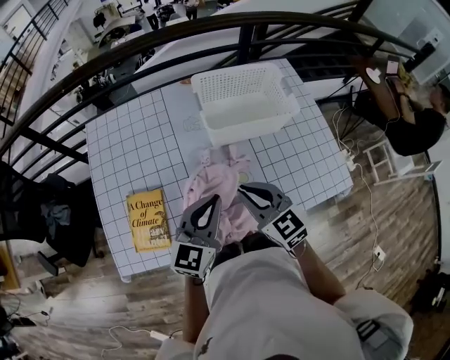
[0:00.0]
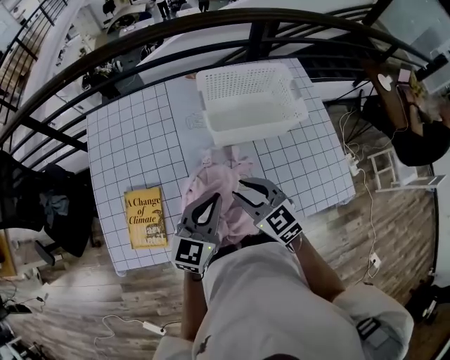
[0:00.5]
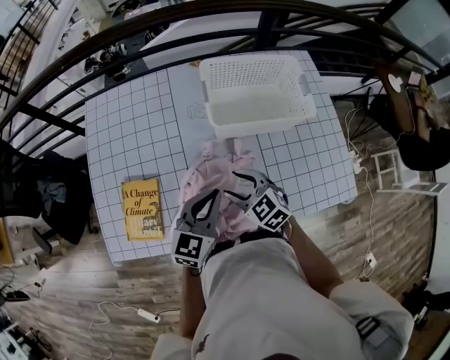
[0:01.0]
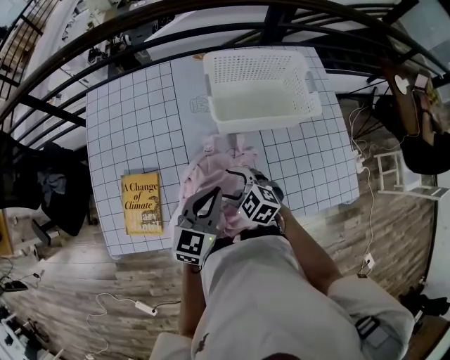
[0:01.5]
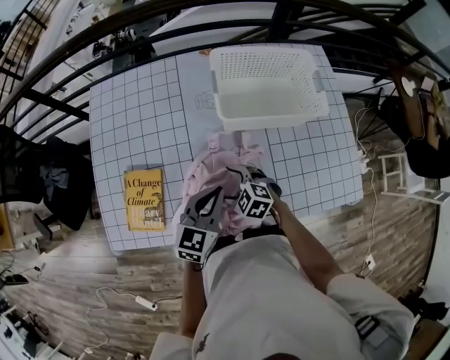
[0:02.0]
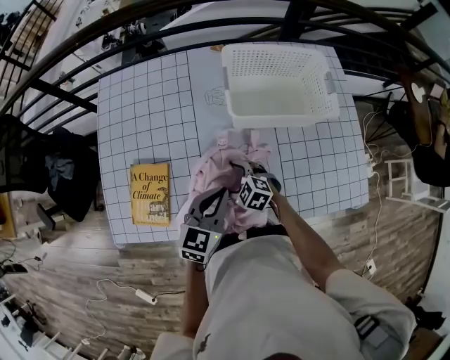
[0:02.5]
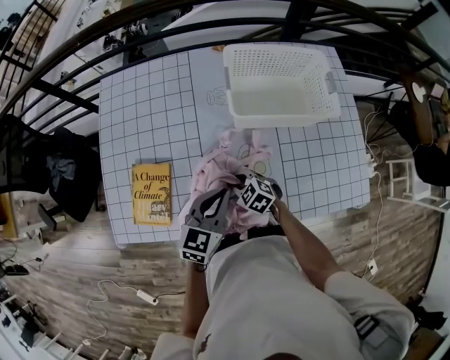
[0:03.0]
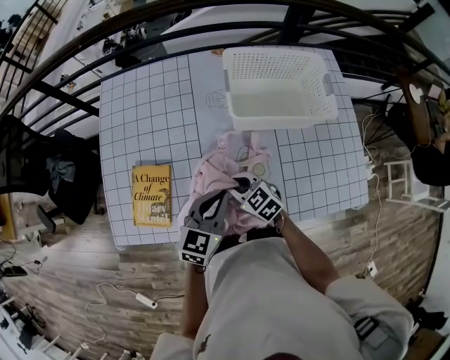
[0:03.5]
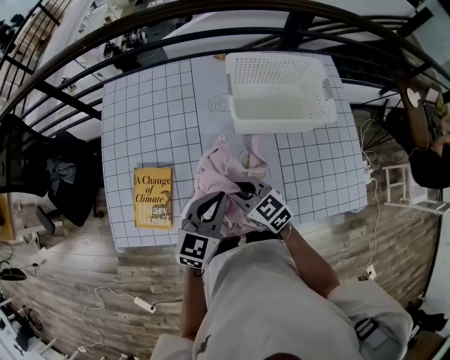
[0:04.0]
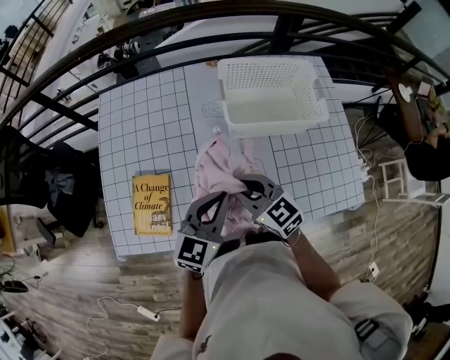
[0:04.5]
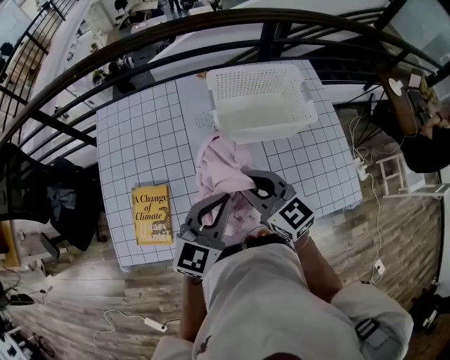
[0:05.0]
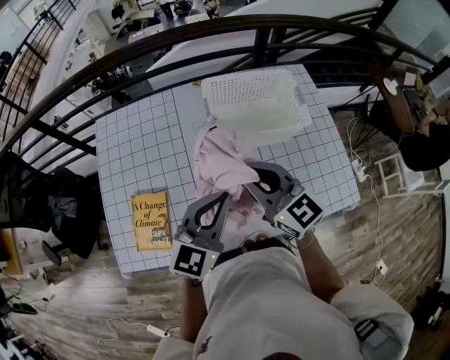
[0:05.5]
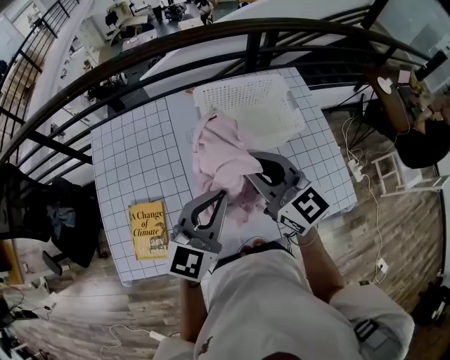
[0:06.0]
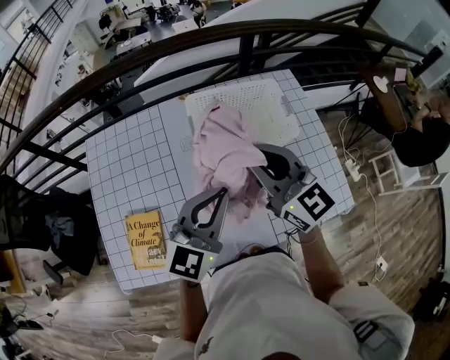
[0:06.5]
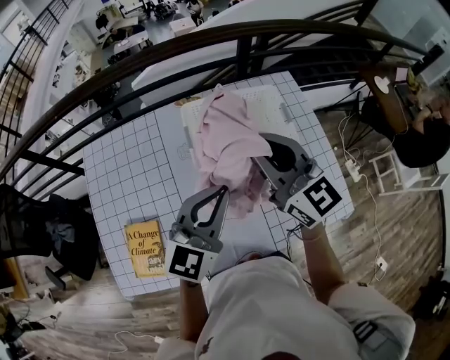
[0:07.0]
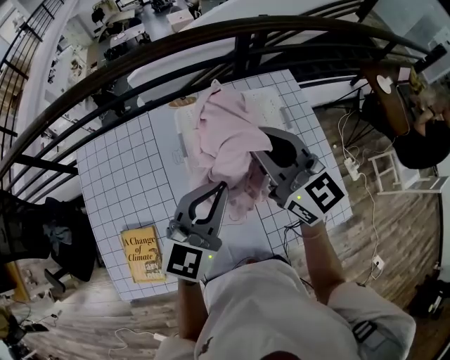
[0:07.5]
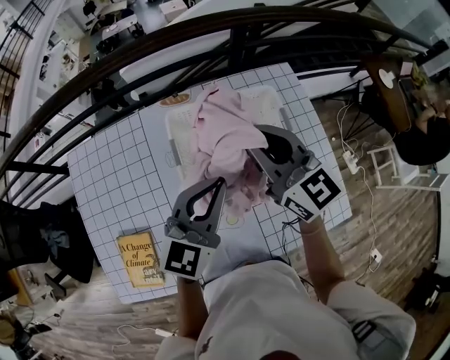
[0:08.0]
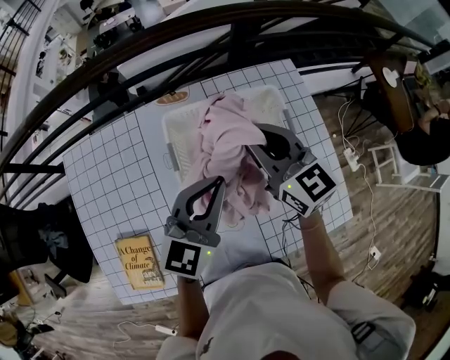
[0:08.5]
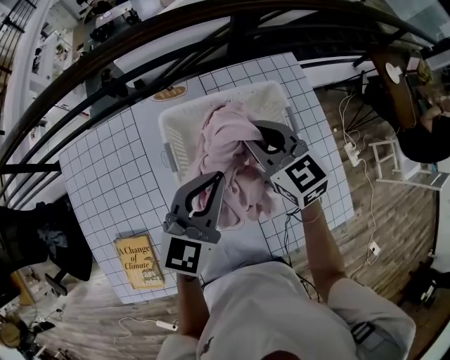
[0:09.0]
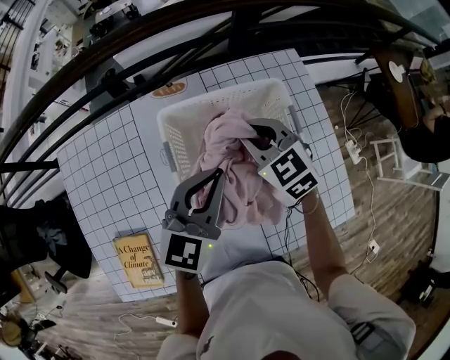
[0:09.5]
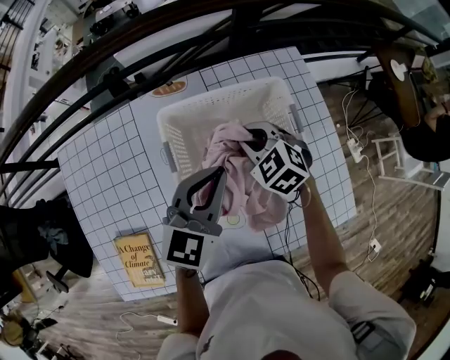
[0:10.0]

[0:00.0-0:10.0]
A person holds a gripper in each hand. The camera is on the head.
0:00.0 to 0:02.0: The right gripper heads downward, covering about 20 cm, points its fingers approximately 30 degrees further downward, and opens, while the left gripper shifts about 10 cm downward.
0:02.0 to 0:04.0: The right gripper travels upward by roughly 10 cm, turns by roughly 30 degrees, and closes up.
0:04.0 to 0:06.0: The right gripper shifts some 25 cm upward and to the right, and changes its angle by about 30 degrees. The left gripper heads upward and to the right, covering about 15 cm, and changes its angle by about 20 degrees.
0:06.0 to 0:08.0: The right gripper heads forward and to the right, covering approximately 20 cm; the left gripper moves forward, roughly 15 cm.
0:08.0 to 0:10.0: The right gripper is displaced downward by roughly 20 cm, and tilts its fingers about 40 degrees downward. Meanwhile the left gripper shifts about 10 cm downward and forward.

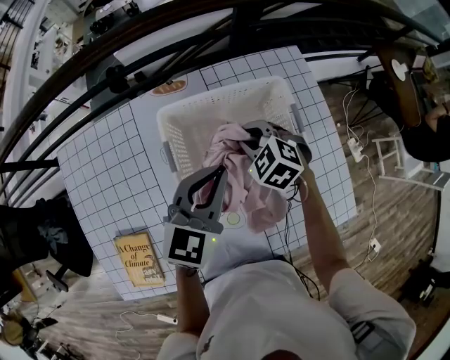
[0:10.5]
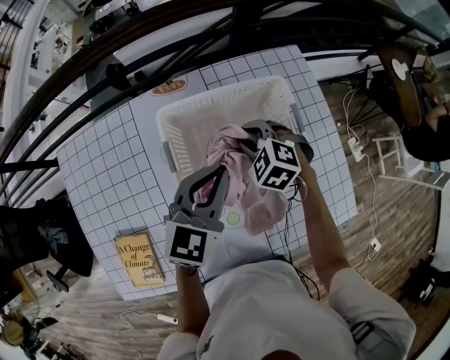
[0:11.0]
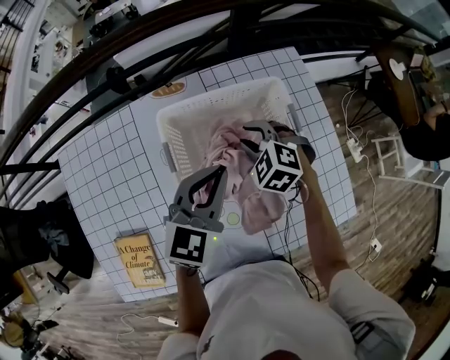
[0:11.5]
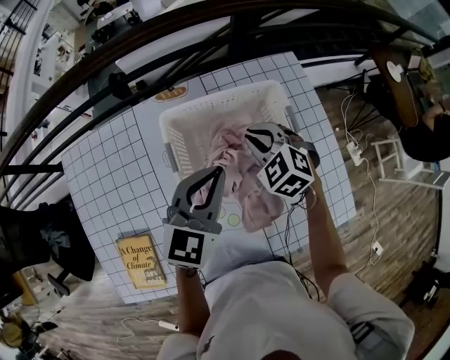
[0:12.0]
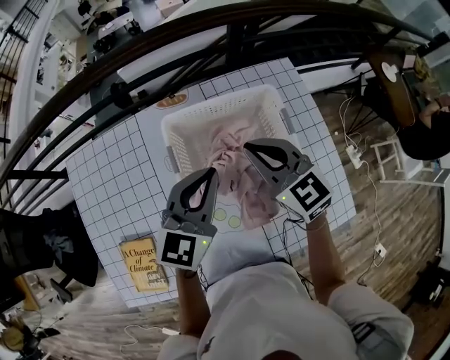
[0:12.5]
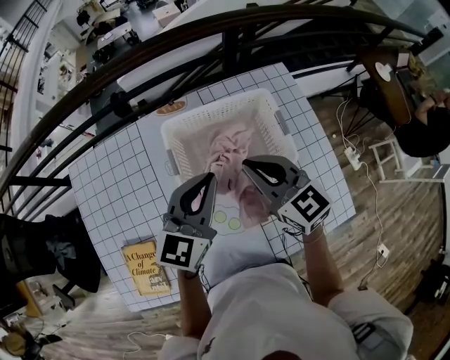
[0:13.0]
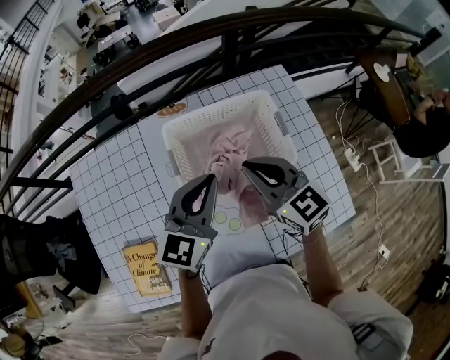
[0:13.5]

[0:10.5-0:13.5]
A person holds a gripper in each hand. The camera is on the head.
0:10.5 to 0:12.0: The grippers move only a little.
0:12.0 to 0:13.5: The right gripper moves upward and backward, roughly 15 cm, and angles its fingers upward, by approximately 30 degrees.

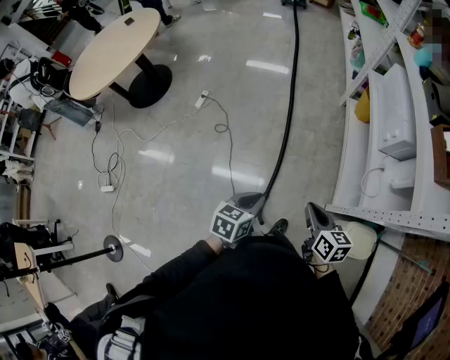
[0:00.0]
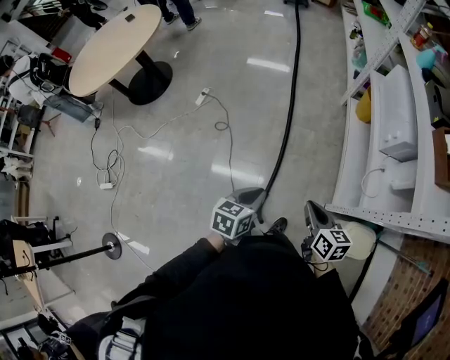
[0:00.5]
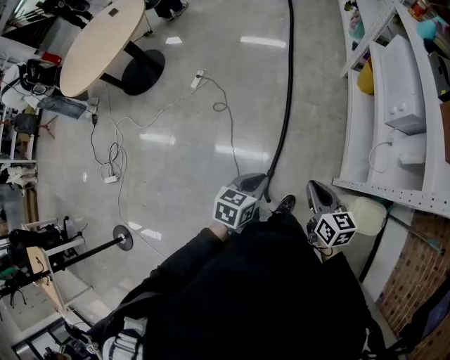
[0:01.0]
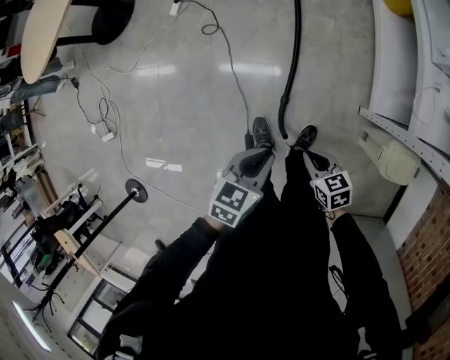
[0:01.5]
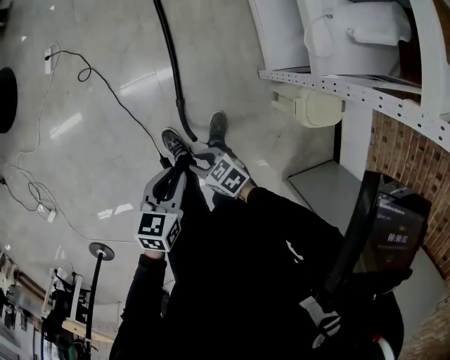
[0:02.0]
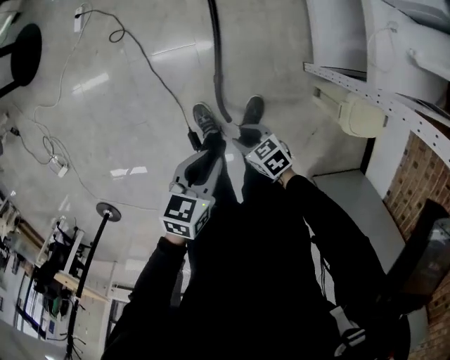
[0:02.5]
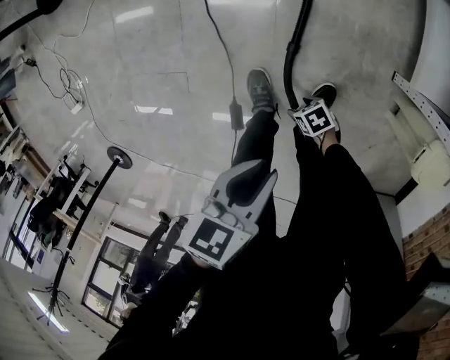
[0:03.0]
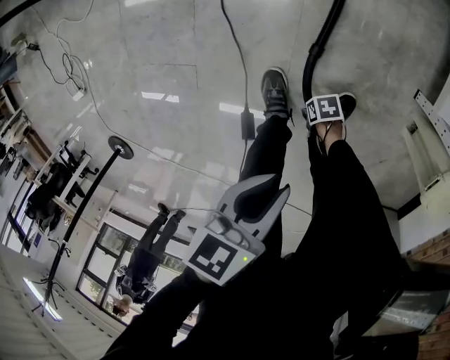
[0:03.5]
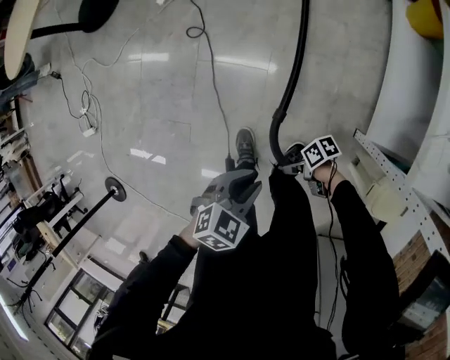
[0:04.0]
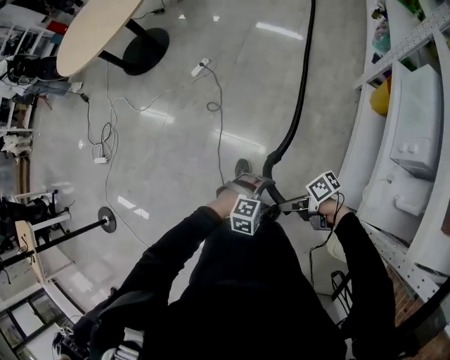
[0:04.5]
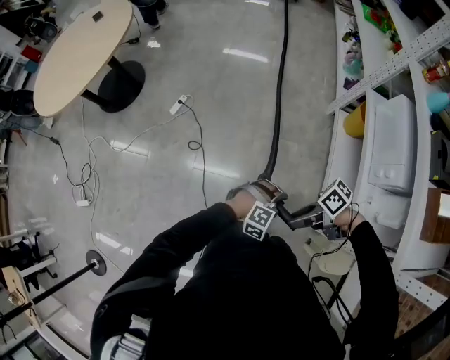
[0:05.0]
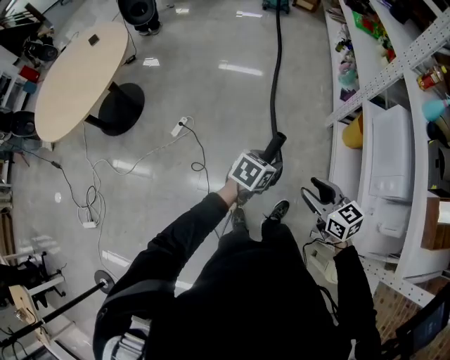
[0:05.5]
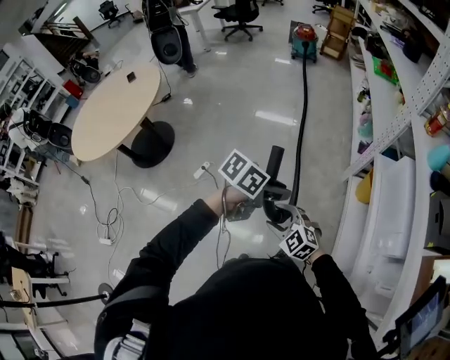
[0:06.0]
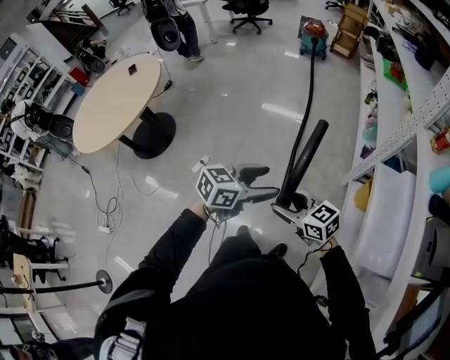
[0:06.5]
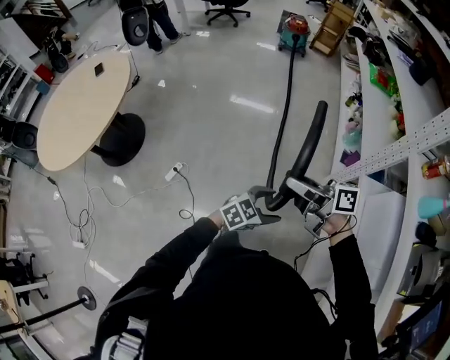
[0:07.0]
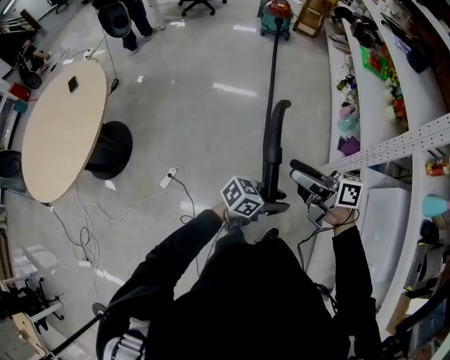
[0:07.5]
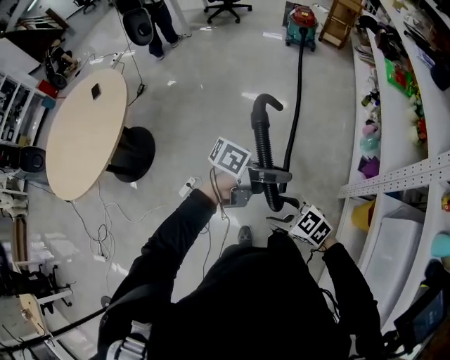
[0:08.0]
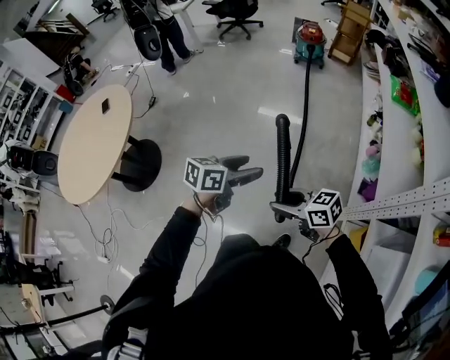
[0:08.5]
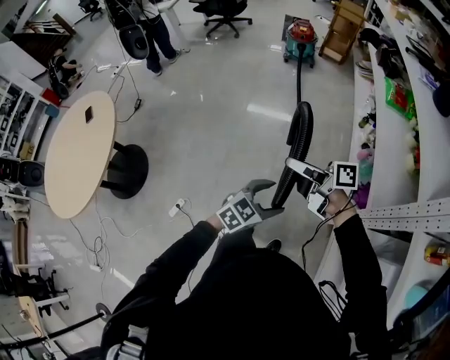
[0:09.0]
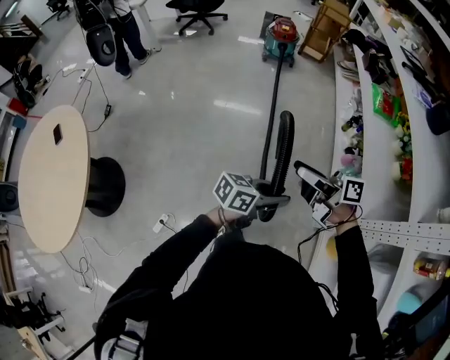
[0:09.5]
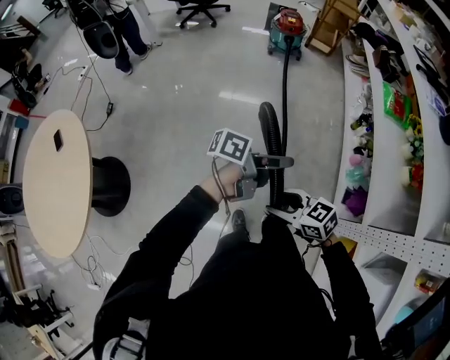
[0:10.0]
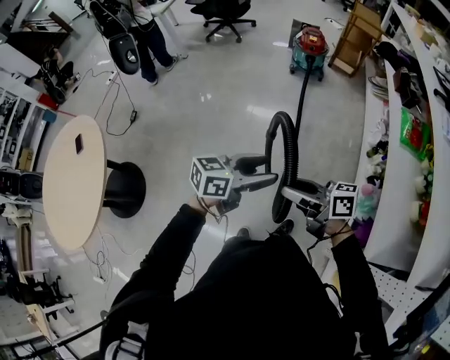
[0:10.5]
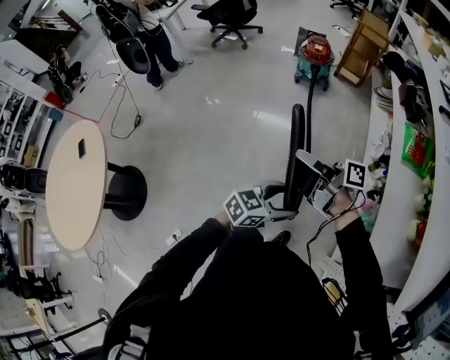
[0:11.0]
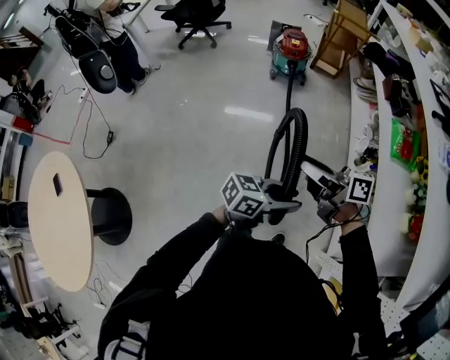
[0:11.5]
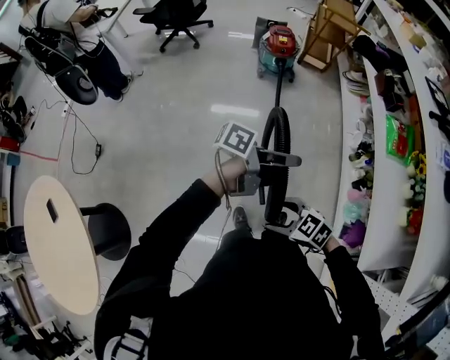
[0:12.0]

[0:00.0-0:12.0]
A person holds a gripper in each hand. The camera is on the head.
0:00.0 to 0:02.0: The right gripper heads downward, covering some 30 cm, and swivels some 40 degrees. Meanwhile the left gripper is displaced downward by roughly 20 cm.
0:02.0 to 0:04.0: The right gripper travels downward and back again, approximately 40 cm each way, and rotates roughly 50 degrees; the left gripper moves downward, roughly 5 cm, and swivels approximately 20 degrees.
0:04.0 to 0:06.0: The two grippers travel together, some 50 cm. The left gripper swivels roughly 30 degrees, and opens, then closes again, while the right gripper rotates around the line of its fingers by some 90 degrees, counterclockwise from behind.
0:06.0 to 0:08.0: The right gripper moves some 15 cm upward and comes back, and changes its angle by approximately 30 degrees. The left gripper travels downward and back again, some 10 cm each way, swivels approximately 30 degrees, and opens, then closes again.
0:08.0 to 0:10.0: The left gripper travels downward and back again, about 10 cm each way, and opens, then closes once more; the right gripper moves roughly 15 cm upward and comes back.
0:10.0 to 0:12.0: The left gripper moves about 35 cm, and opens and closes again; the right gripper travels upward and back again, approximately 10 cm each way.

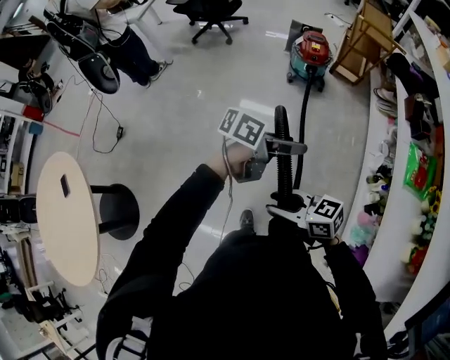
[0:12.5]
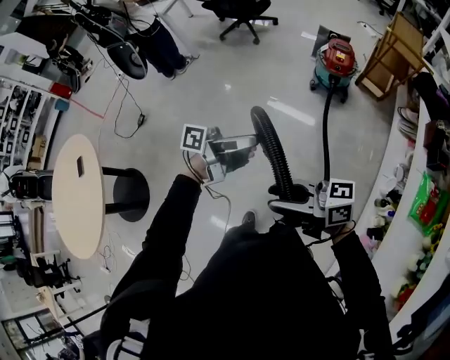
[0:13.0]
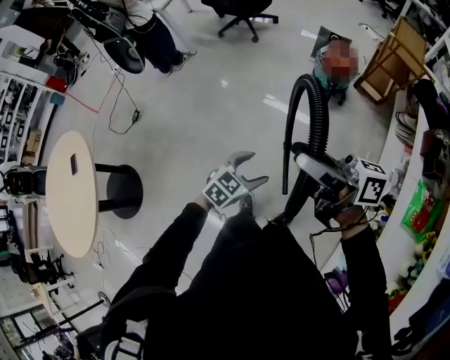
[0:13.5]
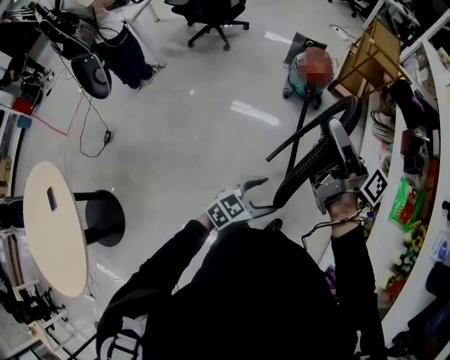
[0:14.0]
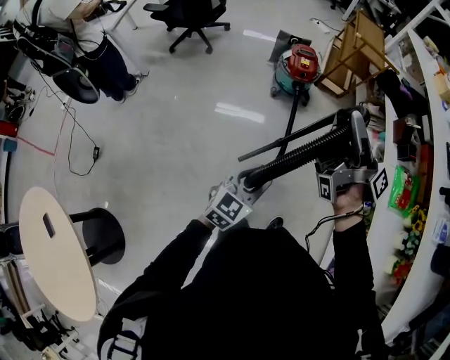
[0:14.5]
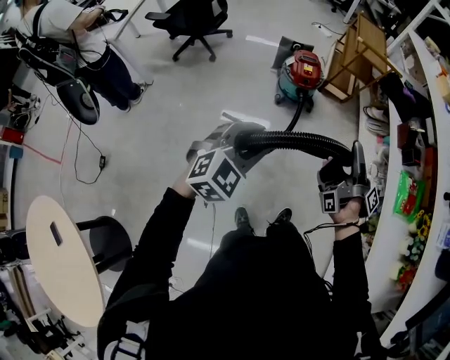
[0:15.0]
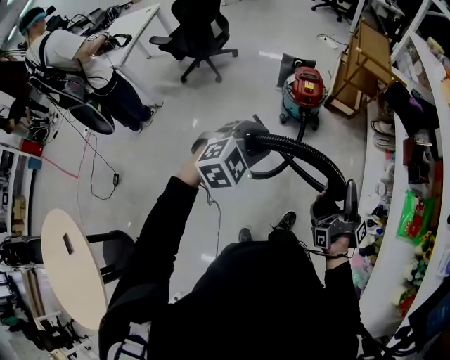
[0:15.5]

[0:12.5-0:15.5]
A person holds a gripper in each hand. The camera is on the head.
0:12.5 to 0:14.0: The right gripper changes place by some 40 cm, and tilts its fingers some 30 degrees upward. The left gripper goes roughly 10 cm downward, and twists some 40 degrees clockwise, seen from behind.
0:14.0 to 0:15.5: The left gripper heads forward and upward, covering approximately 30 cm, rolls clockwise, seen from behind, by roughly 40 degrees, and closes its fingers. Meanwhile the right gripper shifts some 25 cm downward, to the right and forward, rotates some 40 degrees, and opens its fingers.
